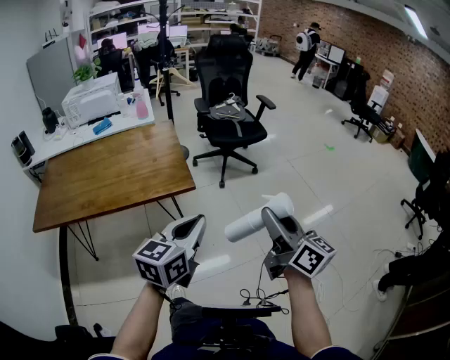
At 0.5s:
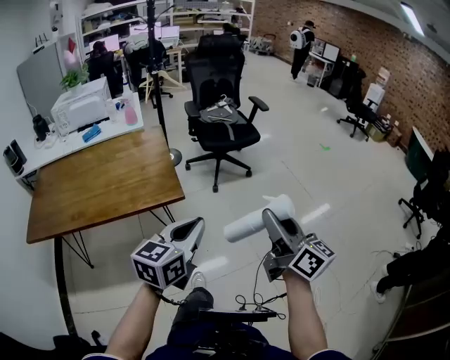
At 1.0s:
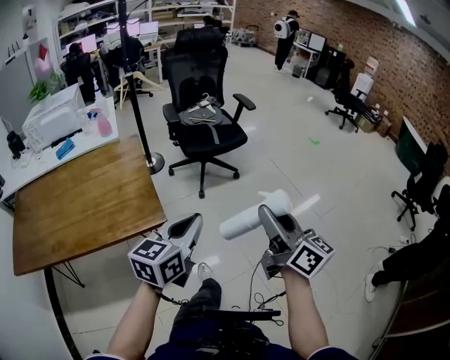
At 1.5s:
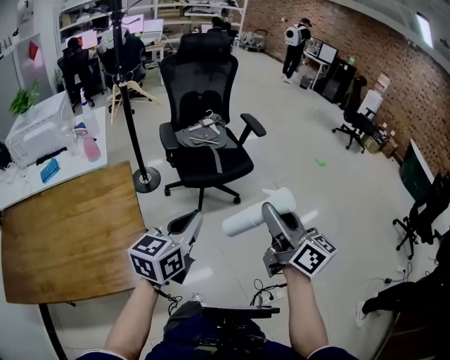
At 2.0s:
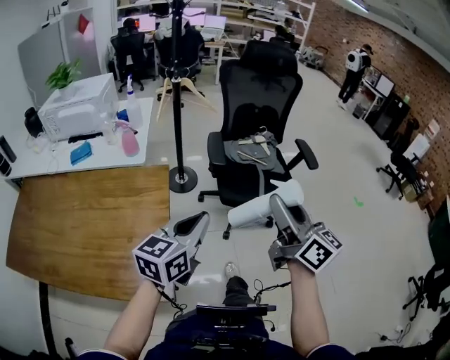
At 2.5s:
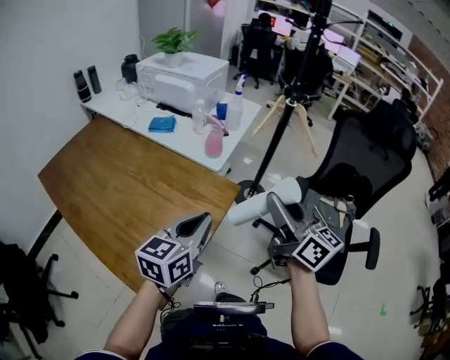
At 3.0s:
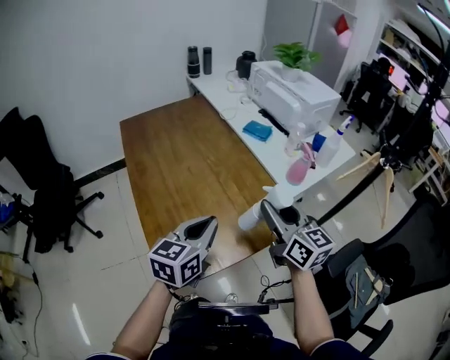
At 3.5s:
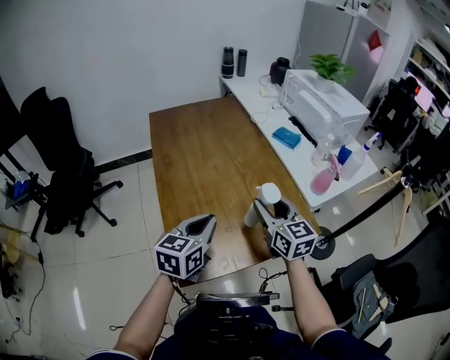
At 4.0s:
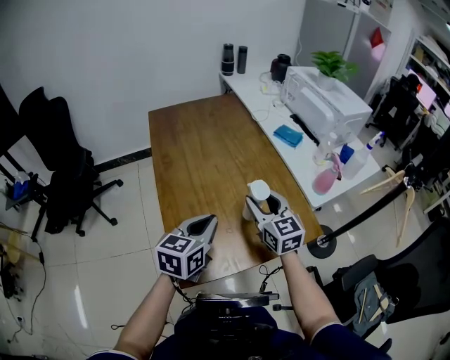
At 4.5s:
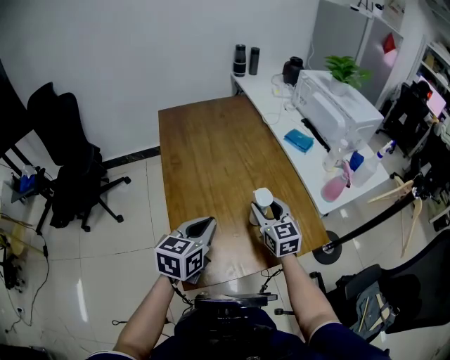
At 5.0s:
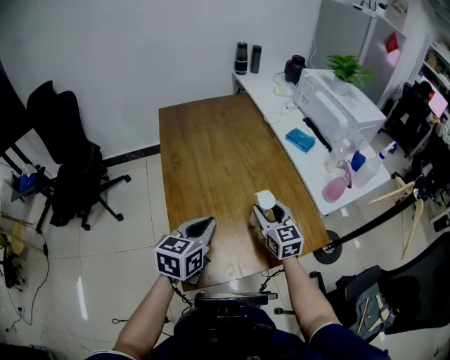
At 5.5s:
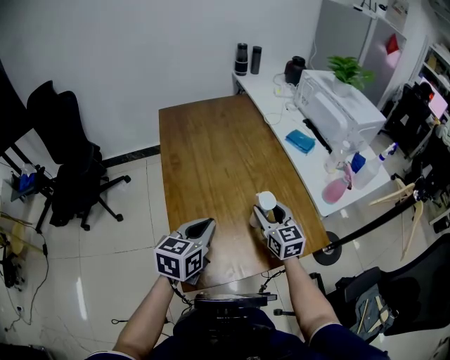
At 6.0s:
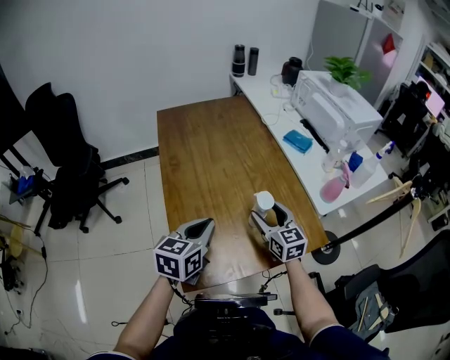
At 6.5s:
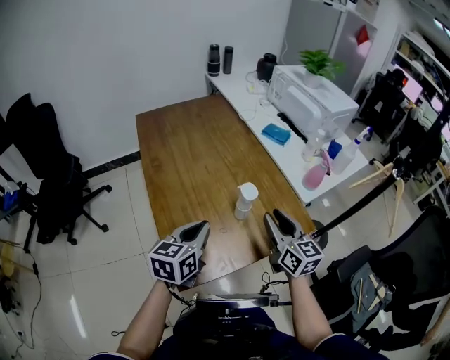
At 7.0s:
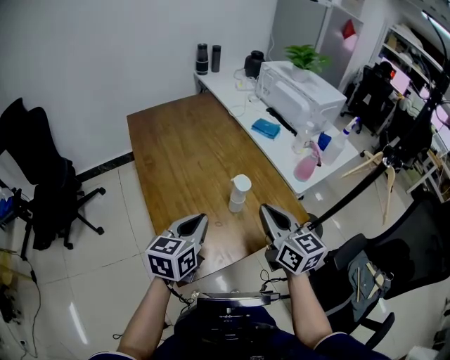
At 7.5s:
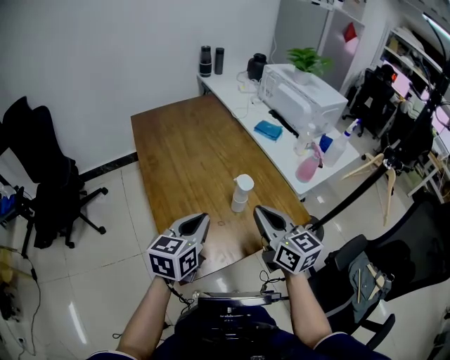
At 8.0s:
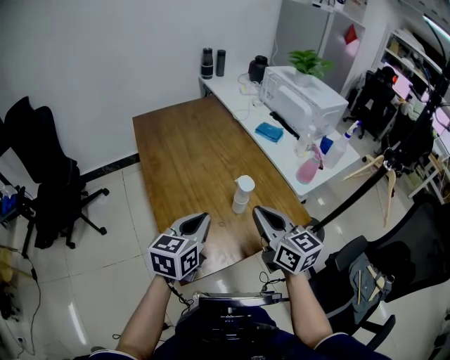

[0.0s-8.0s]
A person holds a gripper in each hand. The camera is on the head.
0.0s to 2.0s: The two grippers travel together, forward, about 50 cm.
2.0s to 4.0s: The right gripper ends up some 50 cm from where it was, and rotates approximately 90 degrees, while the left gripper moves roughly 30 cm, and turns by some 80 degrees.
4.0s to 6.0s: The right gripper heads downward, covering some 5 cm, and opens its fingers.
6.0s to 8.0s: The right gripper moves upward and backward, about 20 cm, and closes its fingers. The left gripper ends up some 5 cm from where it was.

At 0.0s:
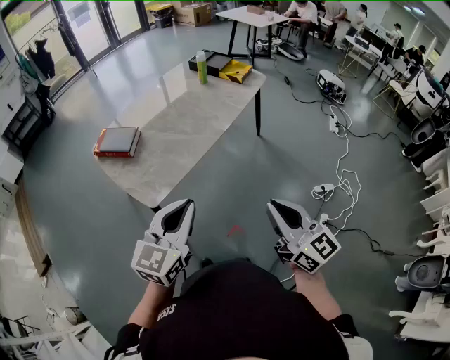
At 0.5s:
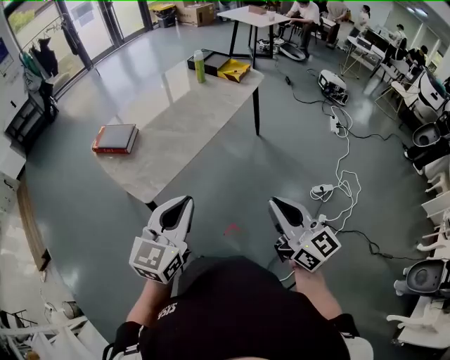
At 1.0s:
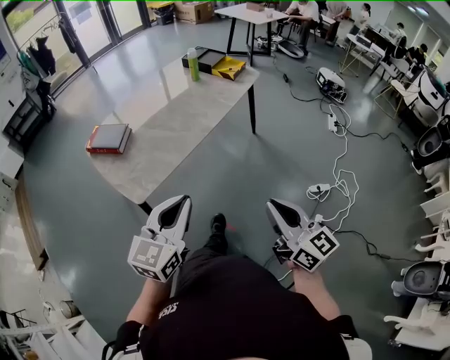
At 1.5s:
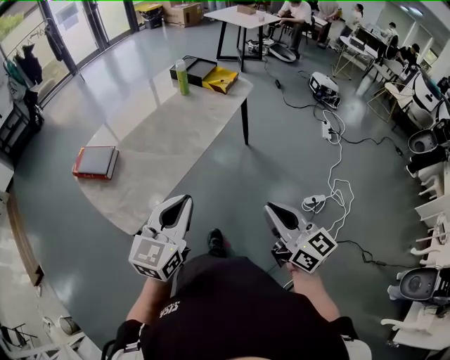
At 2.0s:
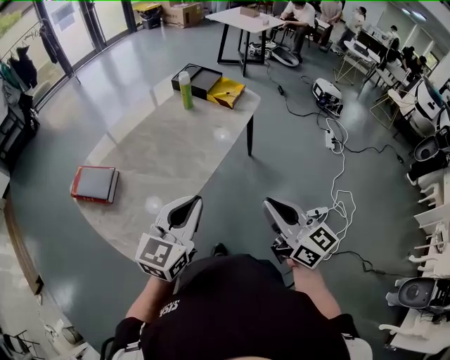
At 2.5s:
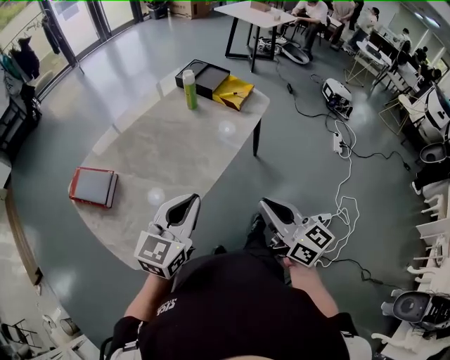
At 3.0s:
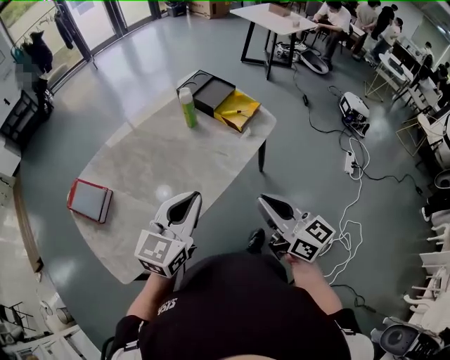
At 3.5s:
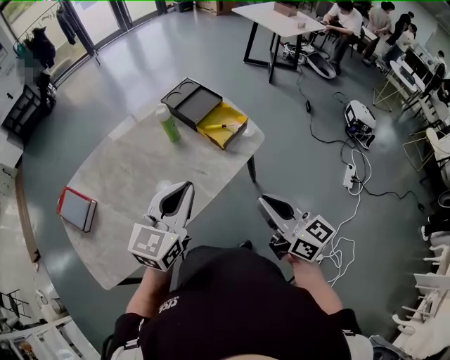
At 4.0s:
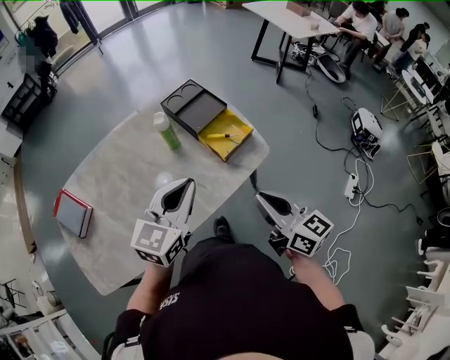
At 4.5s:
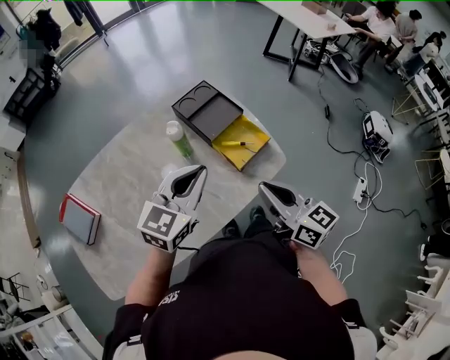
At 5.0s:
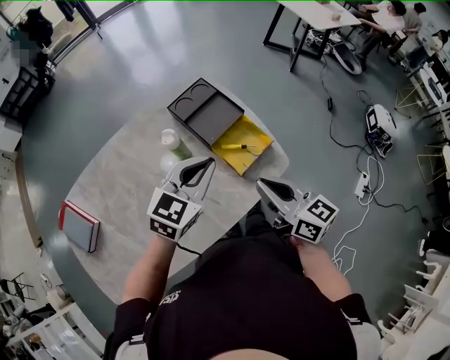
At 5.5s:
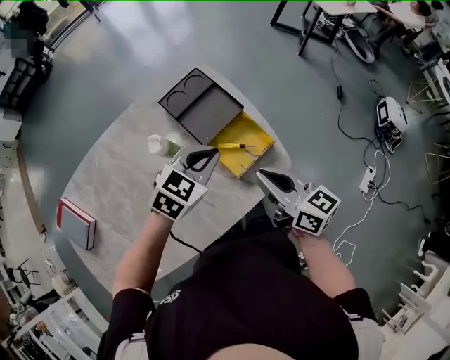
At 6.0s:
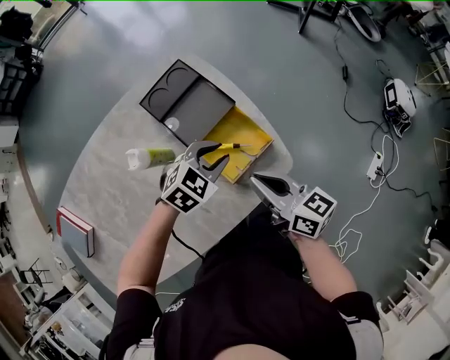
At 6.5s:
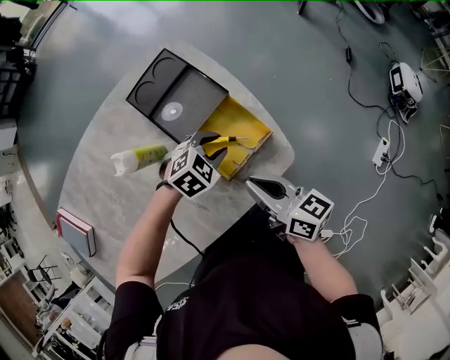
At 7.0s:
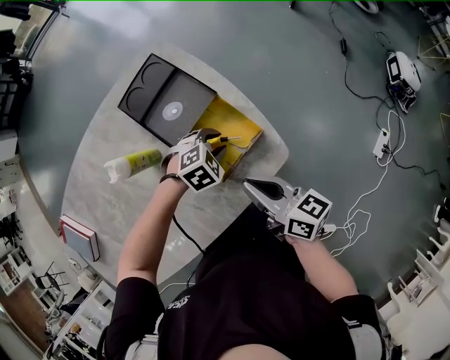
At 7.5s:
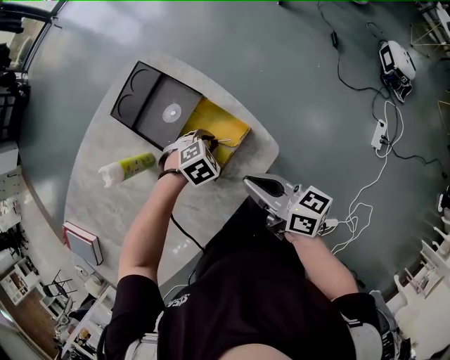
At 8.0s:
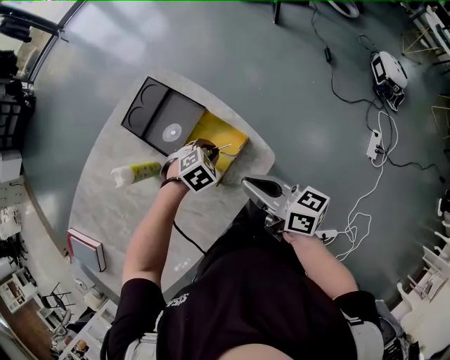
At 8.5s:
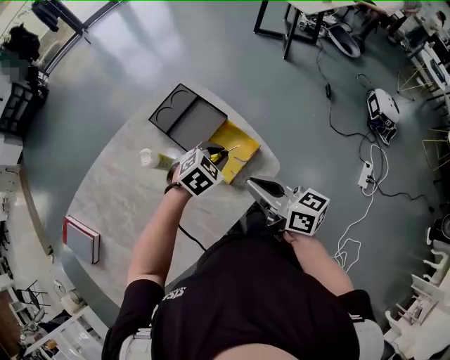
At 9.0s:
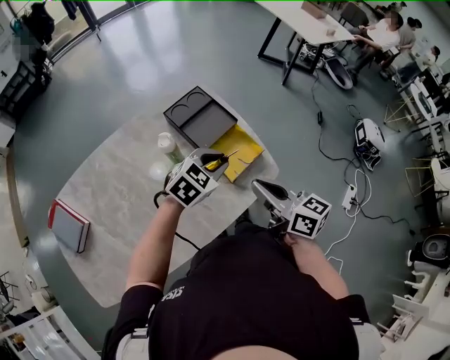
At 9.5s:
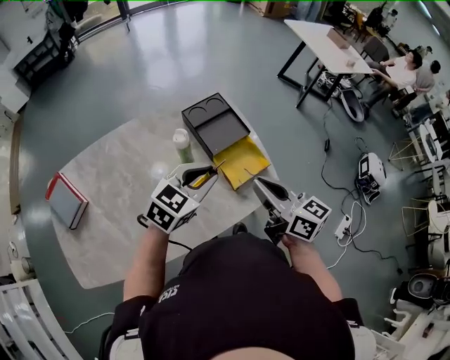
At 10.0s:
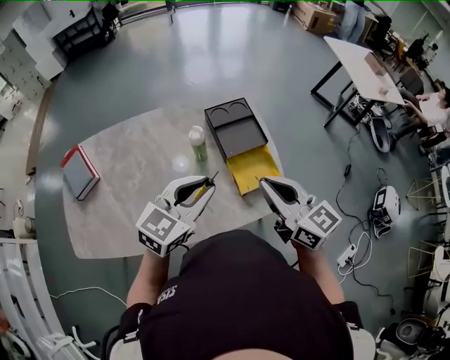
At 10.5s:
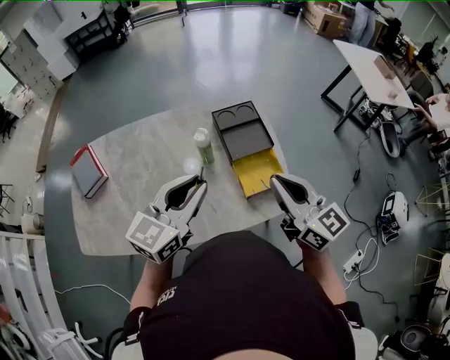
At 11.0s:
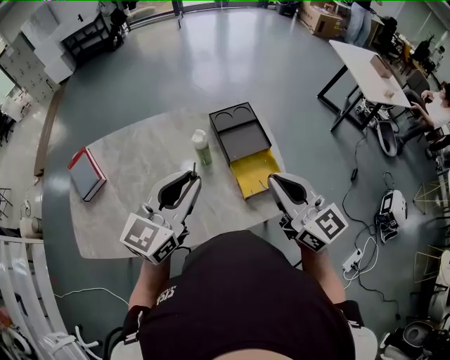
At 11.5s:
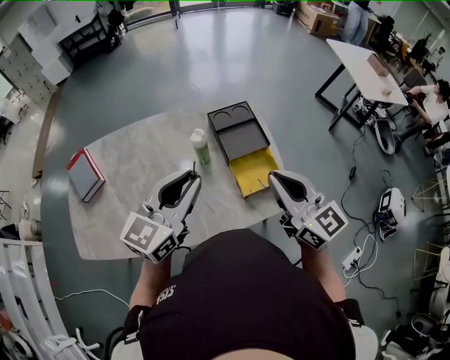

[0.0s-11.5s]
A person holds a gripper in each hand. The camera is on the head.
0.0s to 2.0s: The grippers both shift forward by roughly 25 cm.
2.0s to 4.0s: The two grippers travel together, forward and to the right, roughly 40 cm. The right gripper turns by about 20 degrees.
4.0s to 6.0s: The left gripper moves forward, downward and to the right, roughly 35 cm, angles its fingers downward, by roughly 40 degrees, and opens up. Meanwhile the right gripper shifts approximately 25 cm forward and downward.
6.0s to 7.5s: The left gripper is displaced downward by approximately 15 cm, and swivels roughly 30 degrees; the right gripper changes place by roughly 5 cm.
7.5s to 9.5s: The left gripper travels upward by about 30 cm, and tilts its fingers some 50 degrees upward. The right gripper travels upward by some 20 cm, and swivels approximately 20 degrees.
9.5s to 11.5s: The right gripper goes about 5 cm upward, and swivels roughly 30 degrees. Meanwhile the left gripper is displaced upward and to the left by approximately 15 cm, and rotates roughly 40 degrees.

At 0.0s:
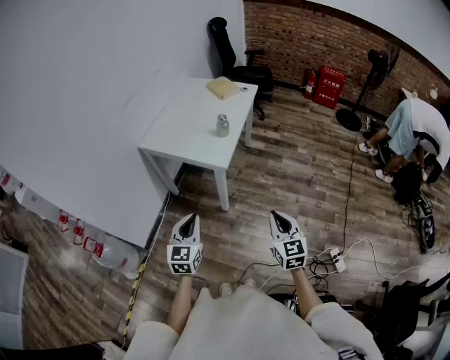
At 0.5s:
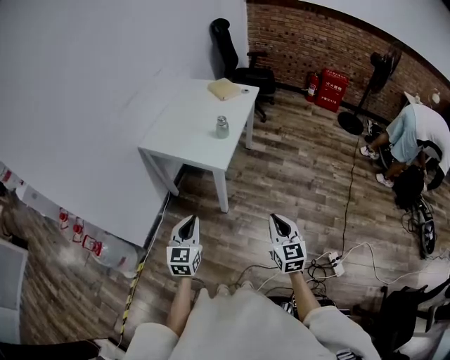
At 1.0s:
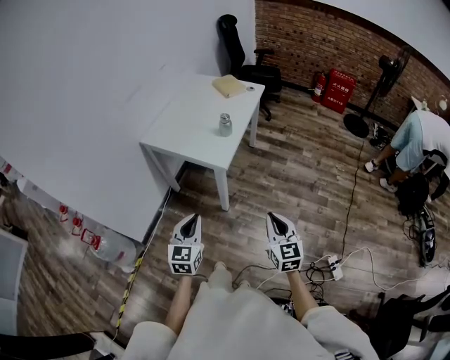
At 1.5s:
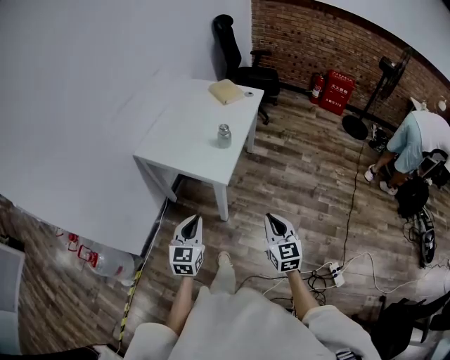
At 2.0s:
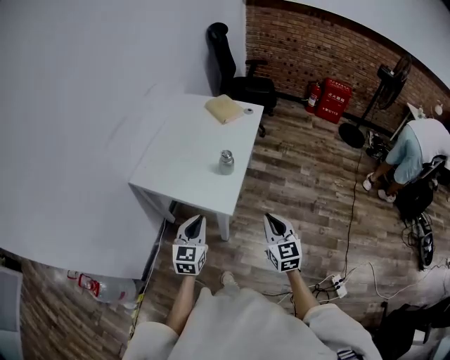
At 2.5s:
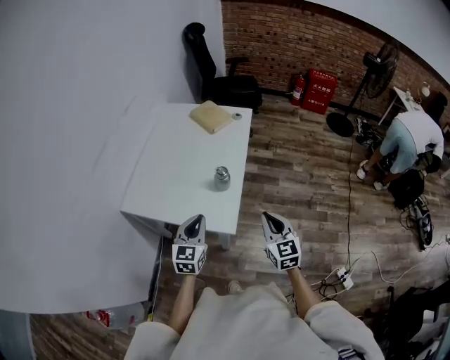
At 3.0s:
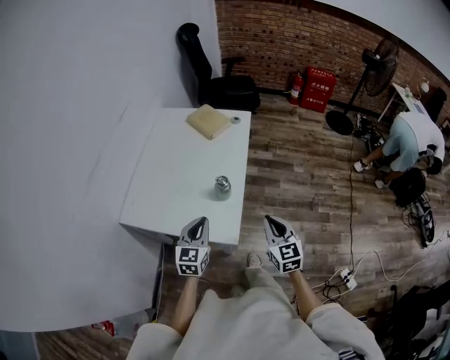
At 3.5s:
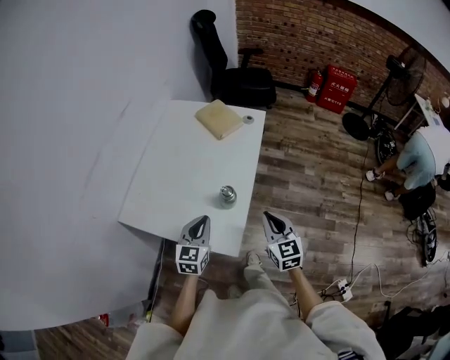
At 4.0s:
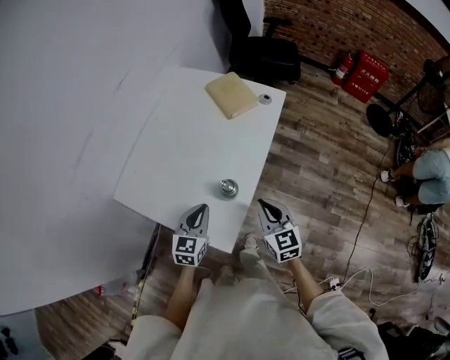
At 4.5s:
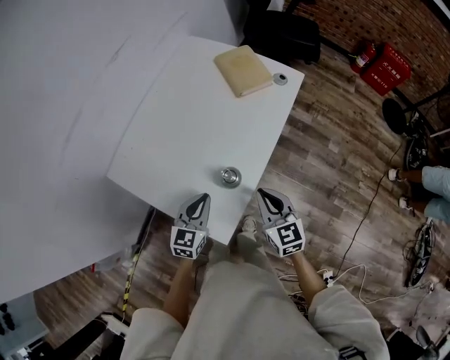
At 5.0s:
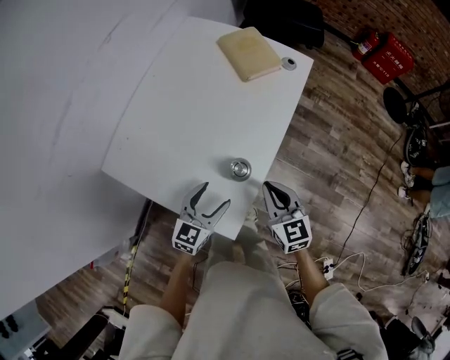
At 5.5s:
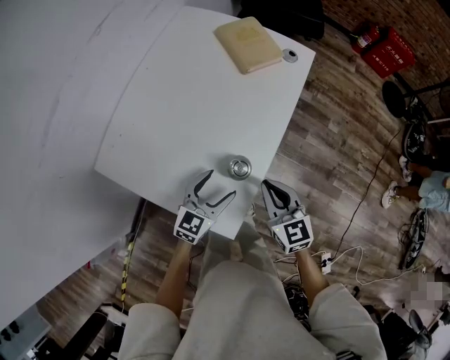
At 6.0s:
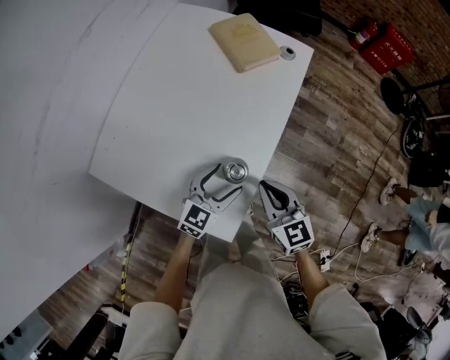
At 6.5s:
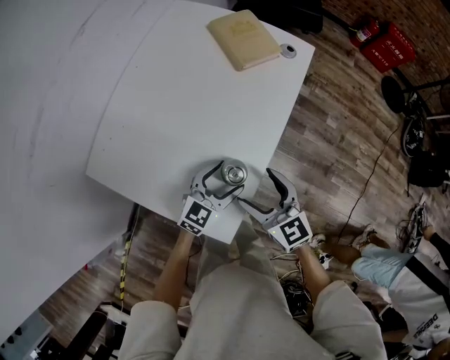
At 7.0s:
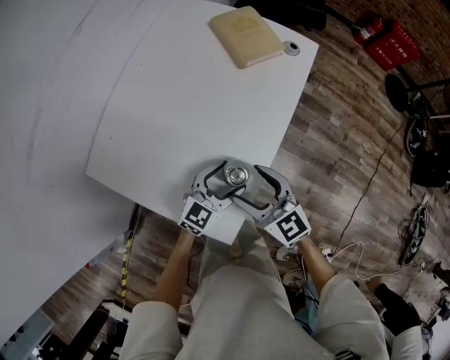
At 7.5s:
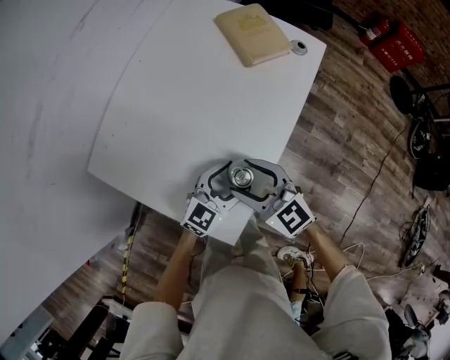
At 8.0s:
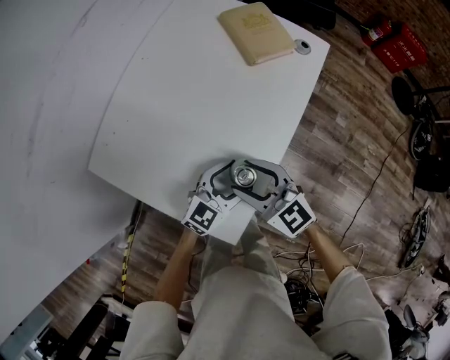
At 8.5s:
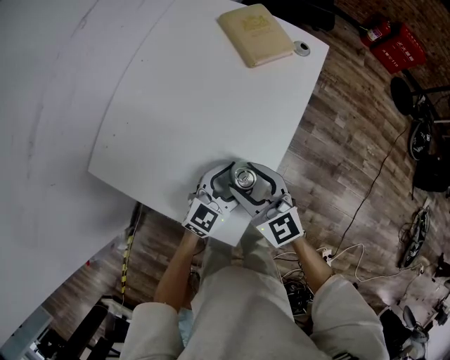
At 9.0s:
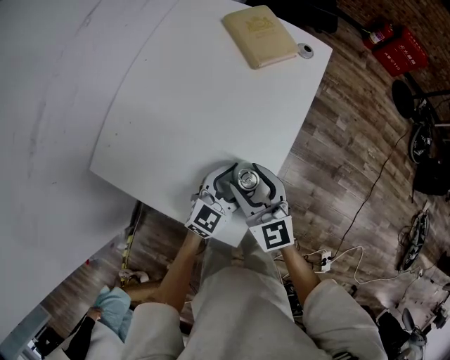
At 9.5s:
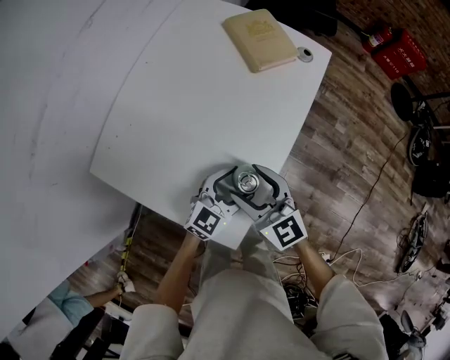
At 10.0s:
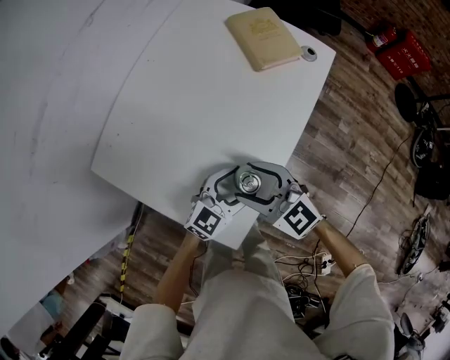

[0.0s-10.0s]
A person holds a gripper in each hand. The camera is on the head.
0.0s to 2.0s: Both grippers travel together forward, some 25 cm.
2.0s to 4.0s: Both grippers move forward, roughly 30 cm.
4.0s to 6.0s: The left gripper travels downward, forward and to the right by about 15 cm, turns by some 20 degrees, and opens, while the right gripper goes roughly 10 cm downward.
6.0s to 8.0s: The right gripper shifts some 10 cm to the left, turns by approximately 30 degrees, and opens its fingers.
